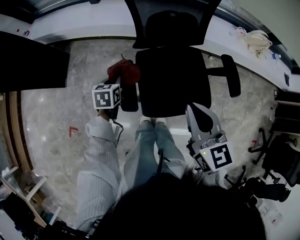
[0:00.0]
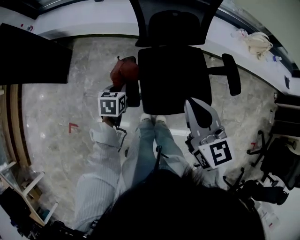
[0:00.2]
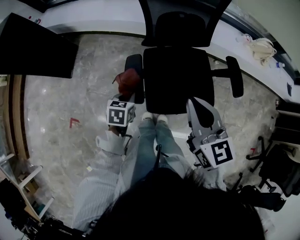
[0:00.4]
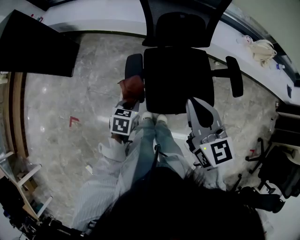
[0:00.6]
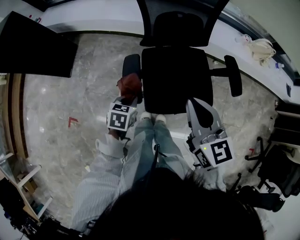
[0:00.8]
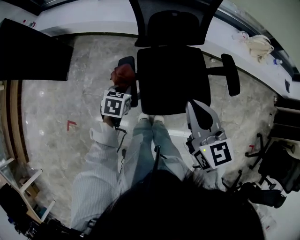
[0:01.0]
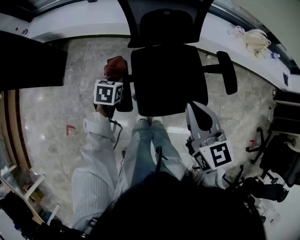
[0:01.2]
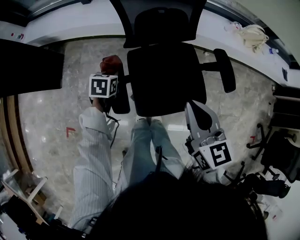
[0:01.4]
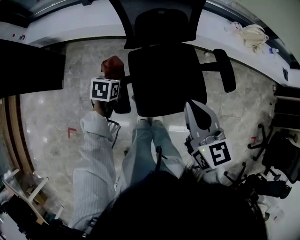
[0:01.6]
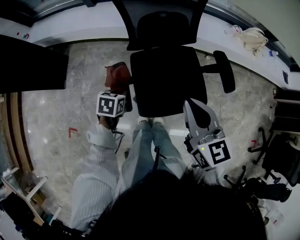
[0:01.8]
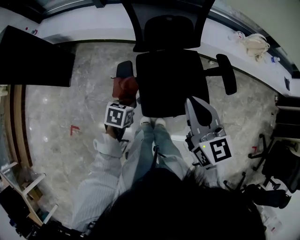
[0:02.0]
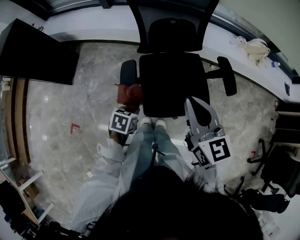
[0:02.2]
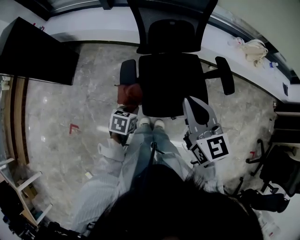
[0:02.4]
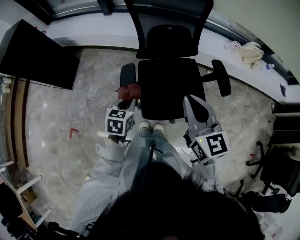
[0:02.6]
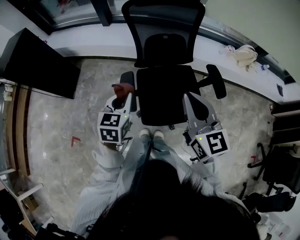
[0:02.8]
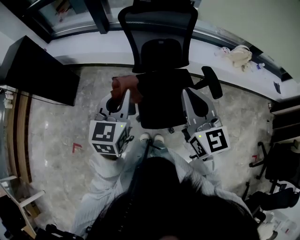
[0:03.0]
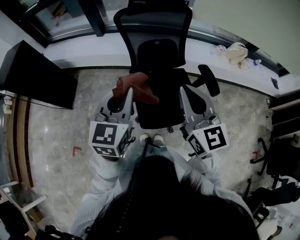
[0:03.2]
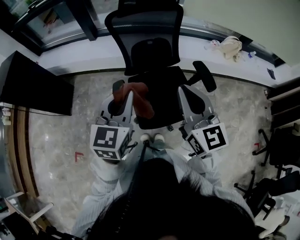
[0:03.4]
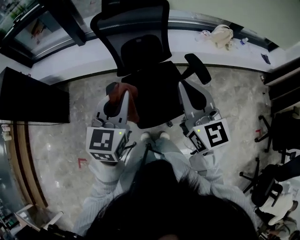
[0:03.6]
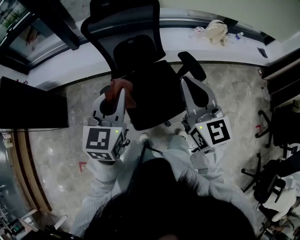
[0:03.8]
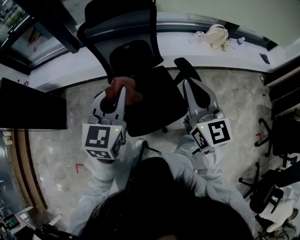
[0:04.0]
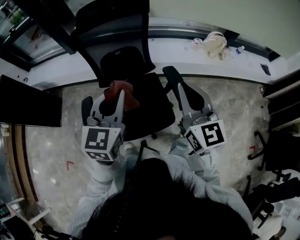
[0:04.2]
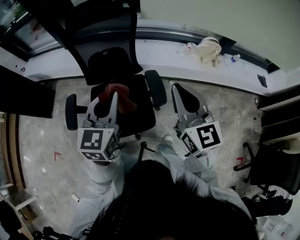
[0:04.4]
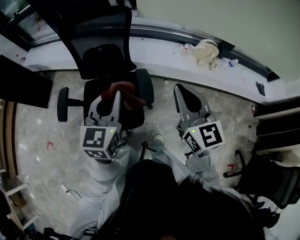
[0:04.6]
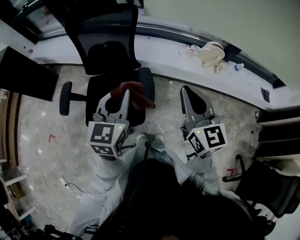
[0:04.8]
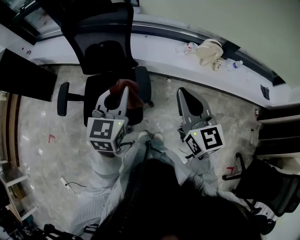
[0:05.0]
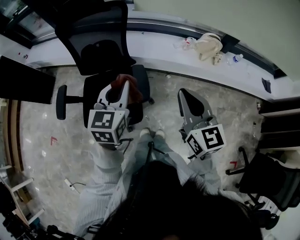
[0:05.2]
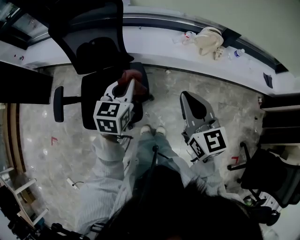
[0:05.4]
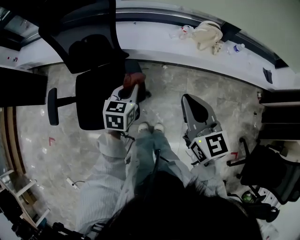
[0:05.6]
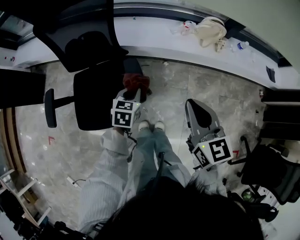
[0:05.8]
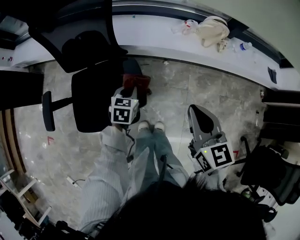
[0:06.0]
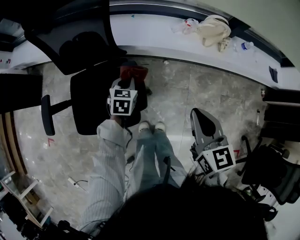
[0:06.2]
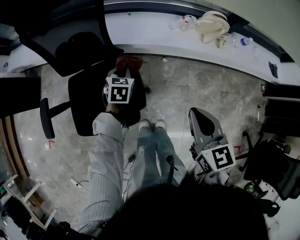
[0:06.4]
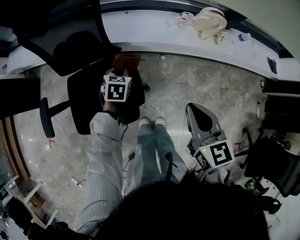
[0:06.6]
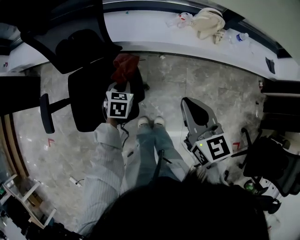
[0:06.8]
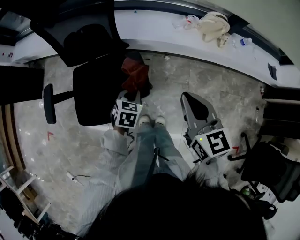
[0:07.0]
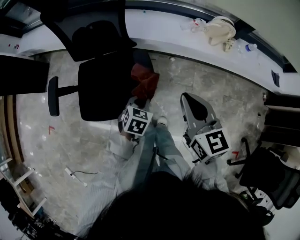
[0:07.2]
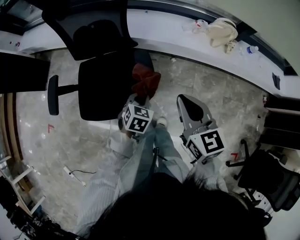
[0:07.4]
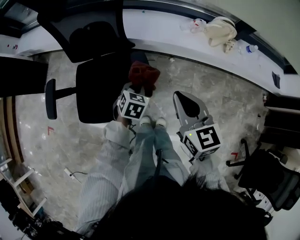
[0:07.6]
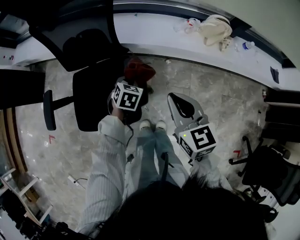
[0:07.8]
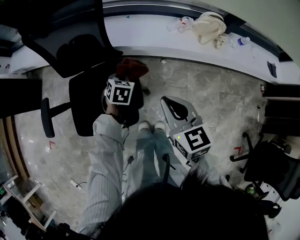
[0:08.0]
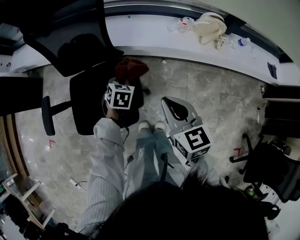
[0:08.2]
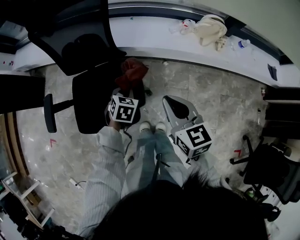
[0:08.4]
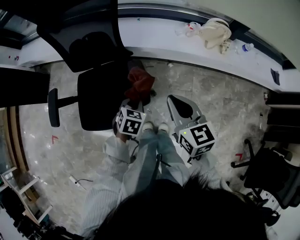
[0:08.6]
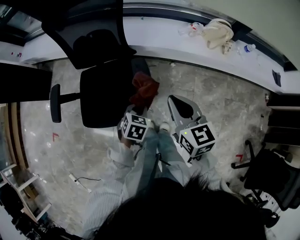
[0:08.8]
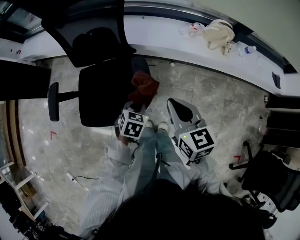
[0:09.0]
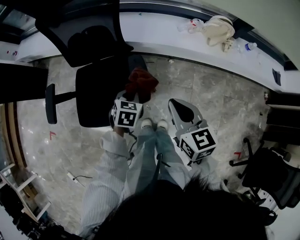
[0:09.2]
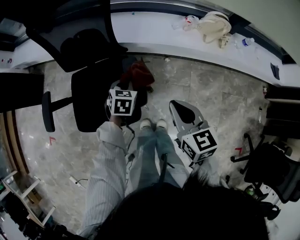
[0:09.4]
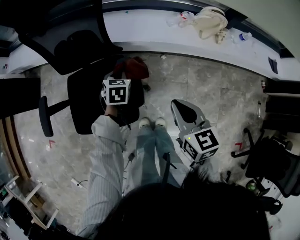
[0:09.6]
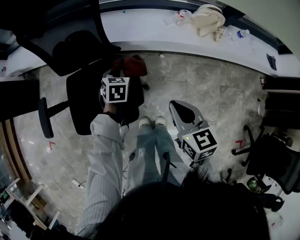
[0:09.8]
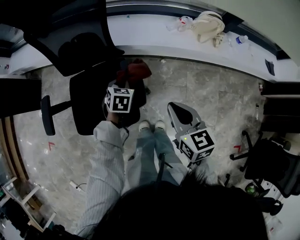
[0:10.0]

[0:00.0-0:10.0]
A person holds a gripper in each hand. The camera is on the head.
0:00.0 to 0:01.4: The left gripper moves about 15 cm backward and comes back.
0:01.4 to 0:02.8: The left gripper heads upward and backward, covering approximately 25 cm, and rotates roughly 30 degrees. The right gripper travels upward by about 10 cm.
0:02.8 to 0:04.2: The left gripper travels to the right and upward by approximately 30 cm, and swivels some 20 degrees; the right gripper goes about 25 cm to the right.
0:04.2 to 0:05.8: The right gripper travels to the right and downward by some 30 cm, and rotates about 20 degrees. The left gripper heads downward and to the right, covering about 40 cm, and tilts its fingers approximately 30 degrees downward.
0:05.8 to 0:07.2: The left gripper travels backward by approximately 10 cm; the right gripper travels to the left by roughly 5 cm.
0:07.2 to 0:08.6: The left gripper reaches about 20 cm forward, then returns.
0:08.6 to 0:10.0: The left gripper goes forward and backward, some 20 cm each way, reversing 2 times.

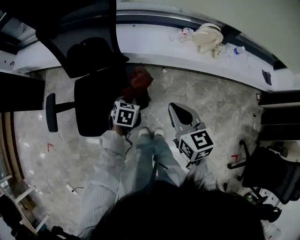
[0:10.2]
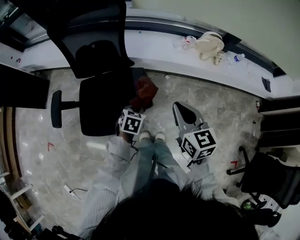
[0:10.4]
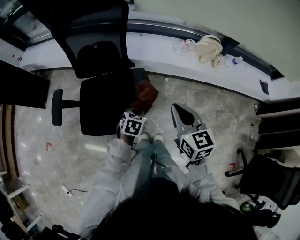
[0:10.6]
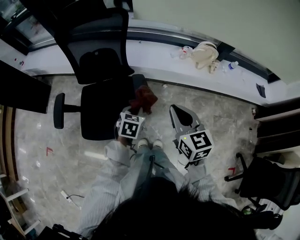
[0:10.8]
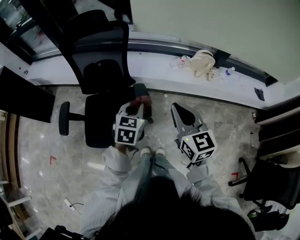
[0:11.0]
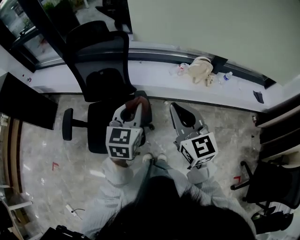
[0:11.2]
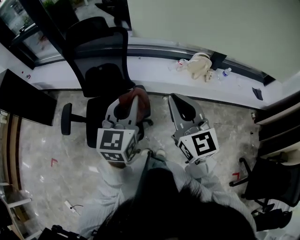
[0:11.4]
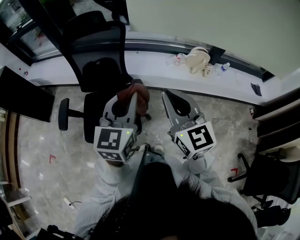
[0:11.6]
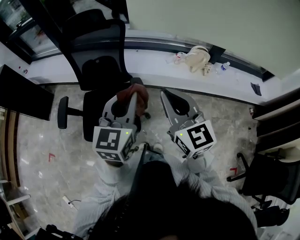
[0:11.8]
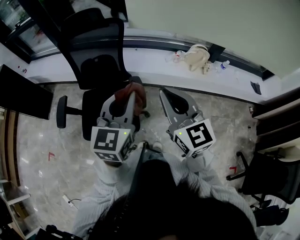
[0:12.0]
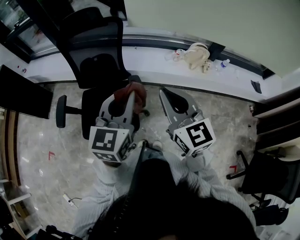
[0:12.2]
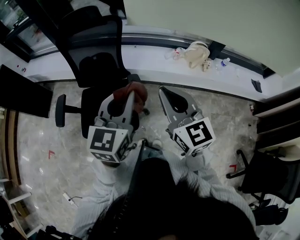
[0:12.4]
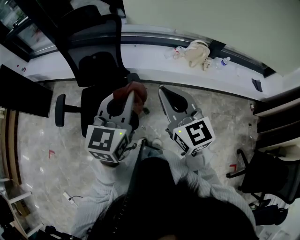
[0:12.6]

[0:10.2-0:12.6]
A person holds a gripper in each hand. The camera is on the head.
0:10.2 to 0:11.4: The left gripper goes roughly 40 cm upward, and points its fingers about 50 degrees further upward. Meanwhile the right gripper goes roughly 25 cm upward, and rotates some 30 degrees.
0:11.4 to 0:12.6: The grippers stay close to where they were, moving slightly.

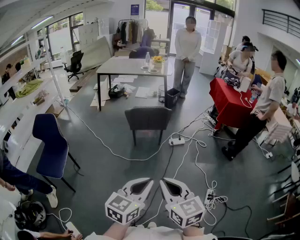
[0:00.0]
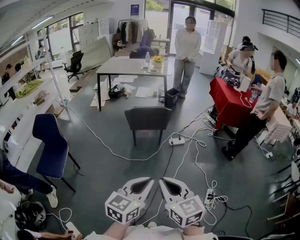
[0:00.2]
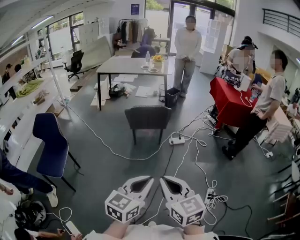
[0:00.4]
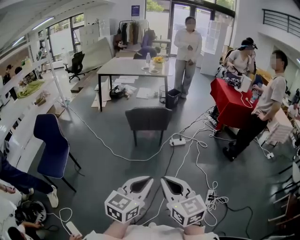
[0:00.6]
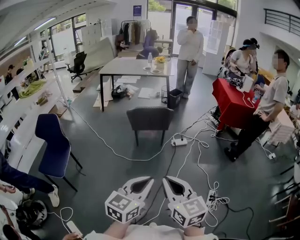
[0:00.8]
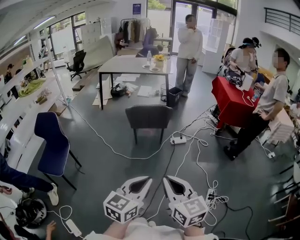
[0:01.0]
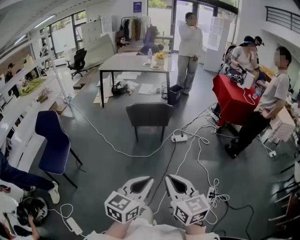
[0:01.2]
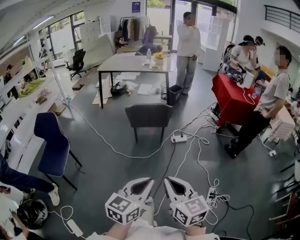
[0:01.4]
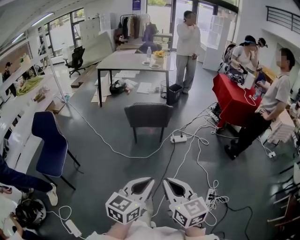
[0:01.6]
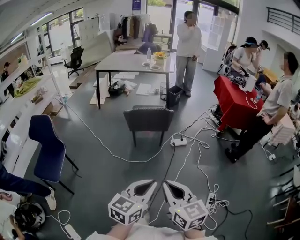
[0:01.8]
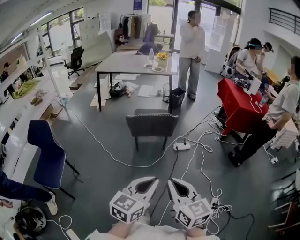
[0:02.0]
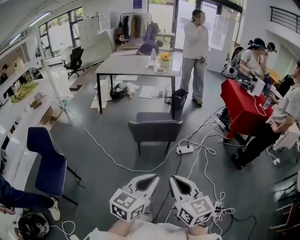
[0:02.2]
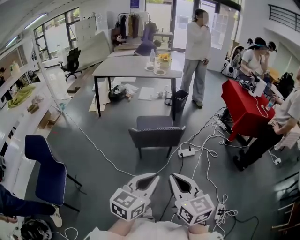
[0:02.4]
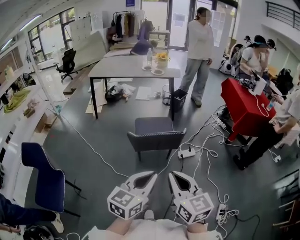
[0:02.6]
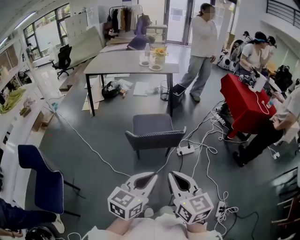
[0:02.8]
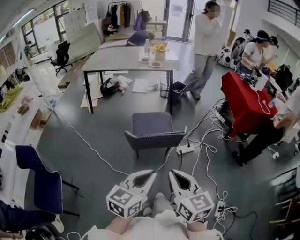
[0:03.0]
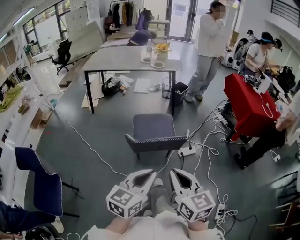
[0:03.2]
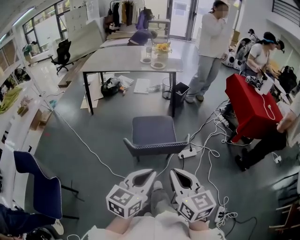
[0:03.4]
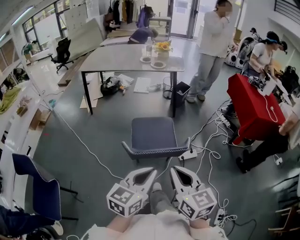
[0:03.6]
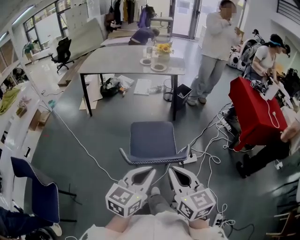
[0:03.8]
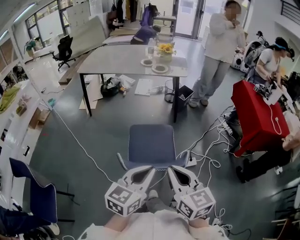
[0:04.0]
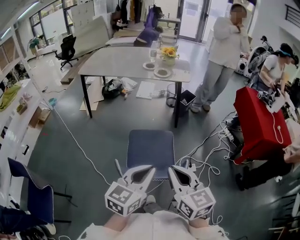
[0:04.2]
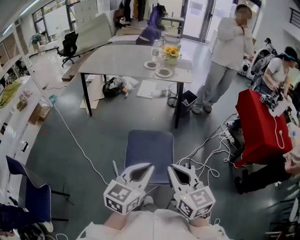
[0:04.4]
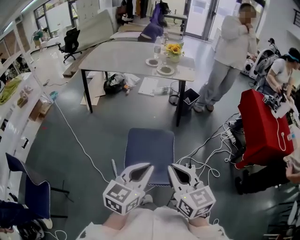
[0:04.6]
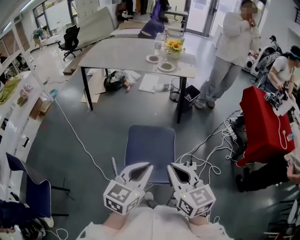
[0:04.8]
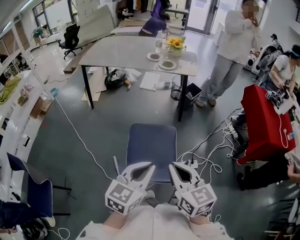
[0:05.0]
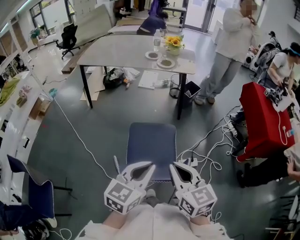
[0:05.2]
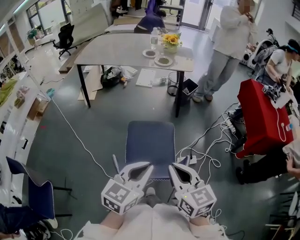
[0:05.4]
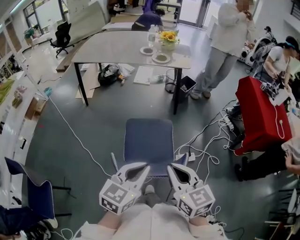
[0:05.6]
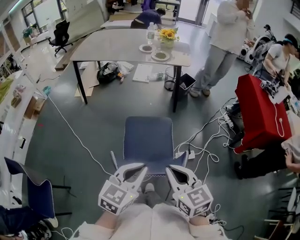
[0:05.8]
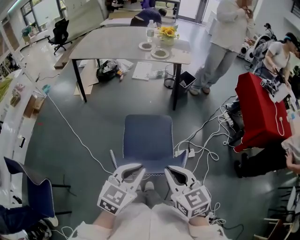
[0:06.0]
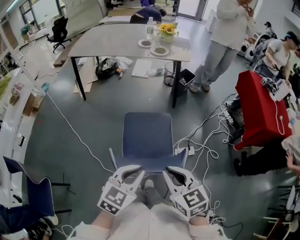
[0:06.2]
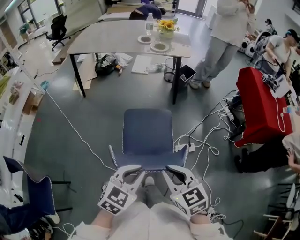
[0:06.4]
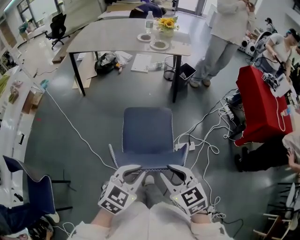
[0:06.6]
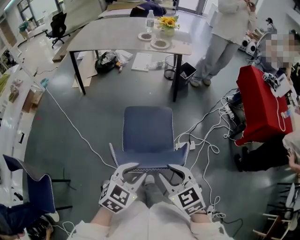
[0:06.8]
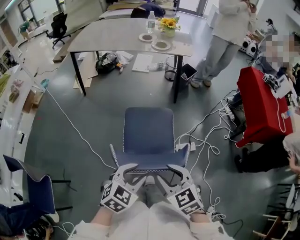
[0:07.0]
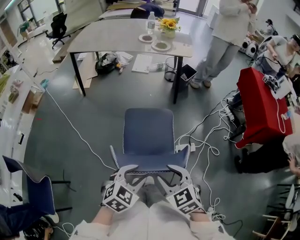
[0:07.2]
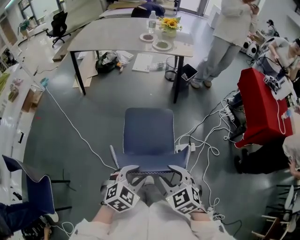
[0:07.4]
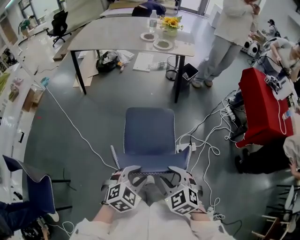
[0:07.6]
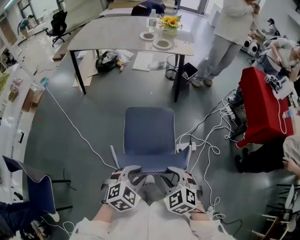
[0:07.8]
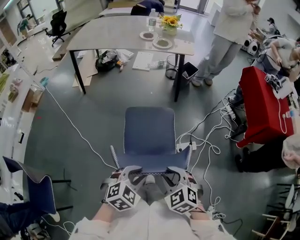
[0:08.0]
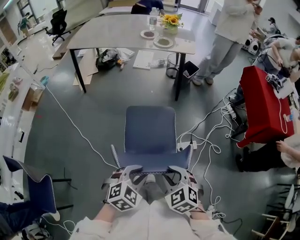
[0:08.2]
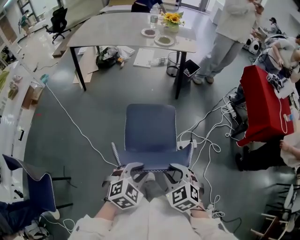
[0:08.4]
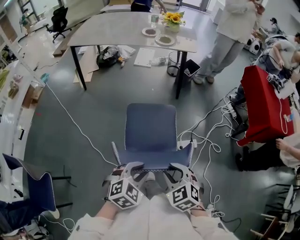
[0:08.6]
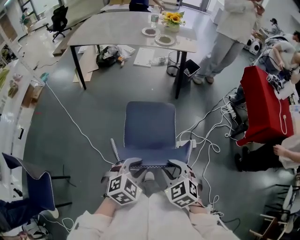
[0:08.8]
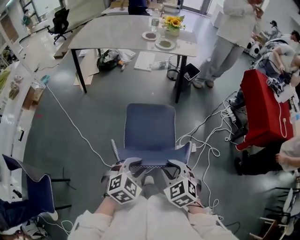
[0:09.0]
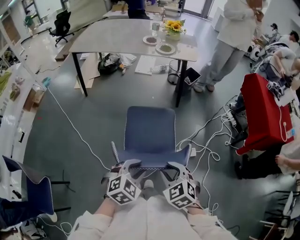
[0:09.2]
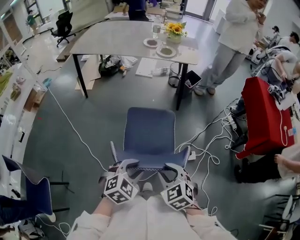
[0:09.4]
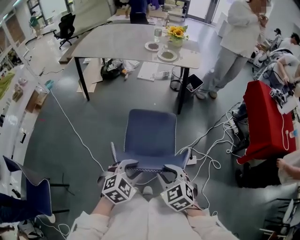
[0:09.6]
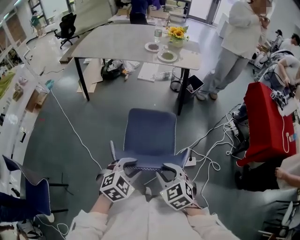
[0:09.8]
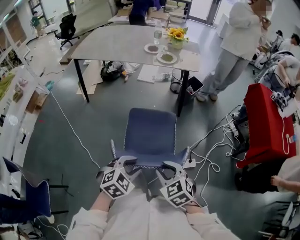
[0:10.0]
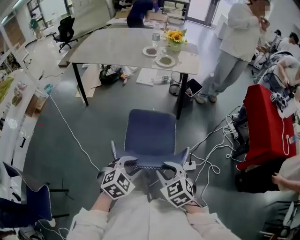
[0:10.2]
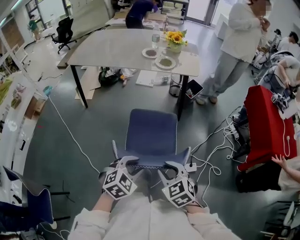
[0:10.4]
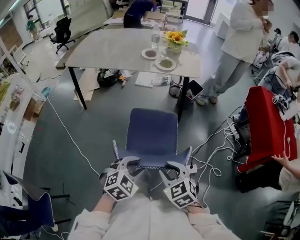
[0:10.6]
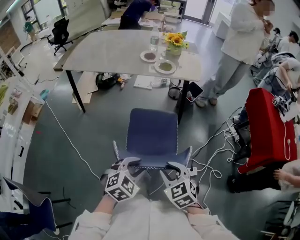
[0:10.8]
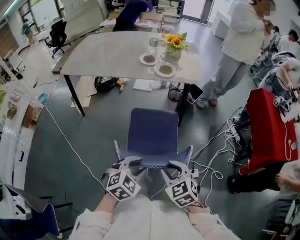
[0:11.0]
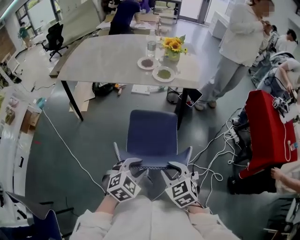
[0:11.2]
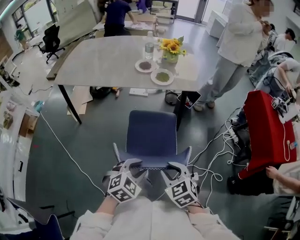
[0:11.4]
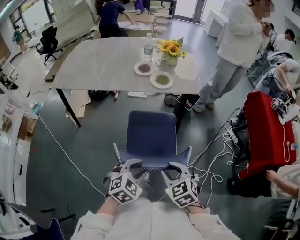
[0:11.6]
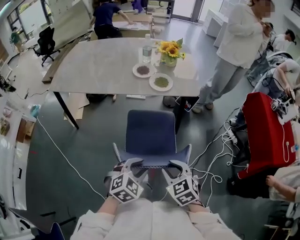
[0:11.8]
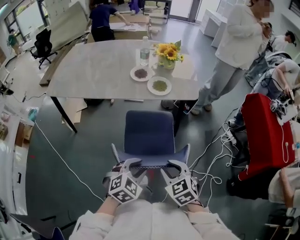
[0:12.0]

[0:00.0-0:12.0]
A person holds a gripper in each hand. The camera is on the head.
0:00.0 to 0:01.6: The right gripper moves about 5 cm.
0:01.6 to 0:03.0: The two grippers travel together, forward, roughly 40 cm.
0:03.0 to 0:04.4: Both grippers travel together forward, about 30 cm.
0:04.4 to 0:06.0: The grippers both shift downward by approximately 5 cm.
0:06.0 to 0:07.6: Both grippers travel together downward, roughly 10 cm. The right gripper rotates roughly 40 degrees, and opens. The left gripper changes its angle by roughly 30 degrees, and opens.
0:07.6 to 0:09.0: The grippers move only a little.
0:09.0 to 0:10.4: Both grippers move forward, approximately 15 cm.
0:10.4 to 0:12.0: Both grippers move forward, some 25 cm.
